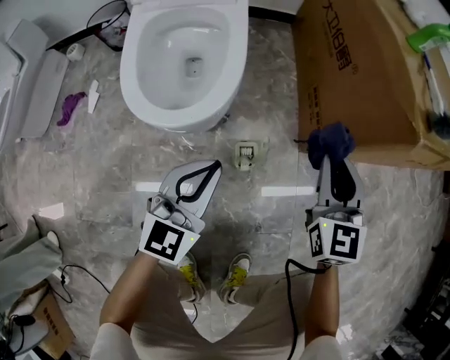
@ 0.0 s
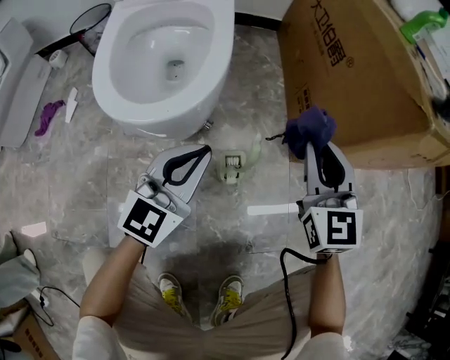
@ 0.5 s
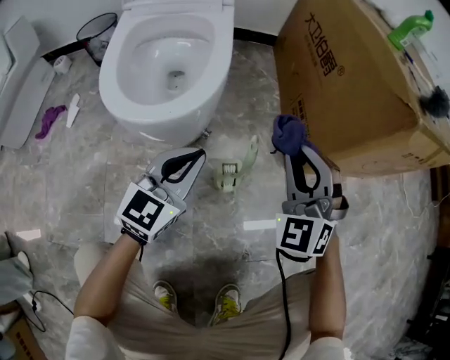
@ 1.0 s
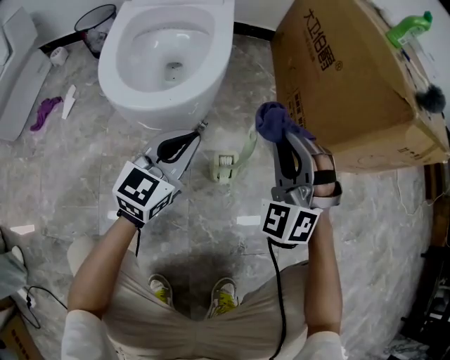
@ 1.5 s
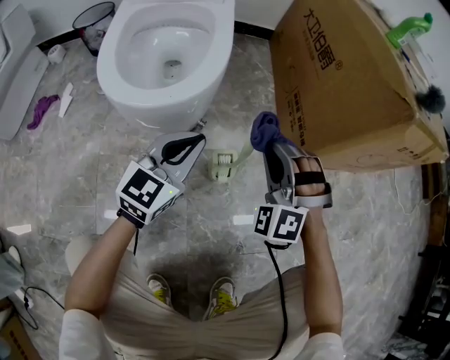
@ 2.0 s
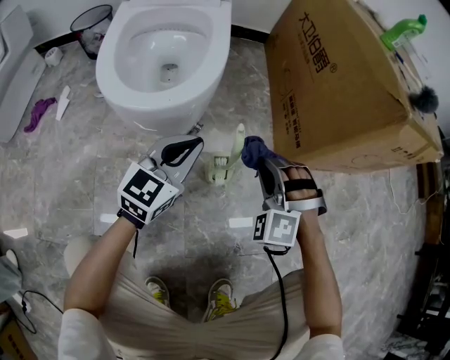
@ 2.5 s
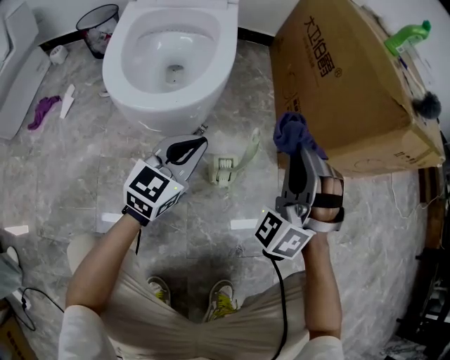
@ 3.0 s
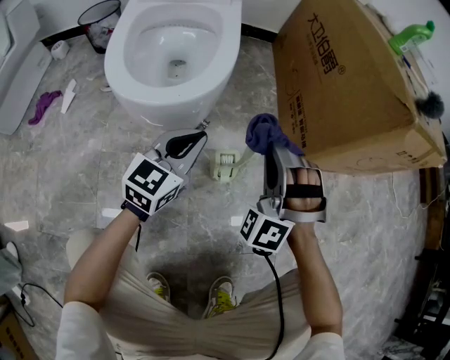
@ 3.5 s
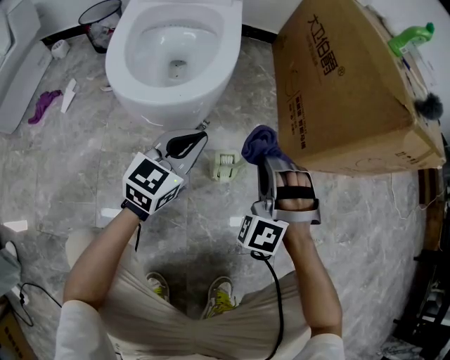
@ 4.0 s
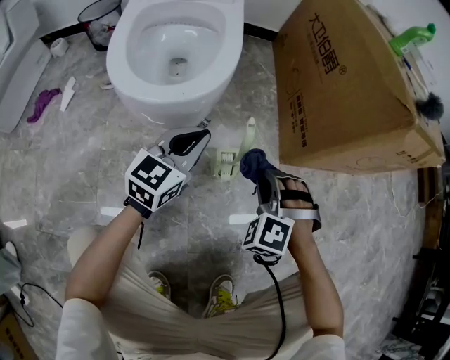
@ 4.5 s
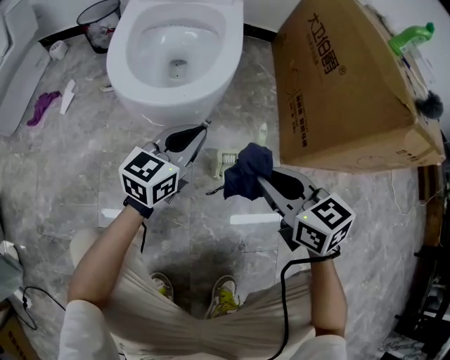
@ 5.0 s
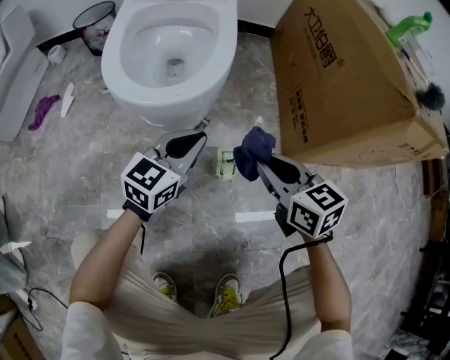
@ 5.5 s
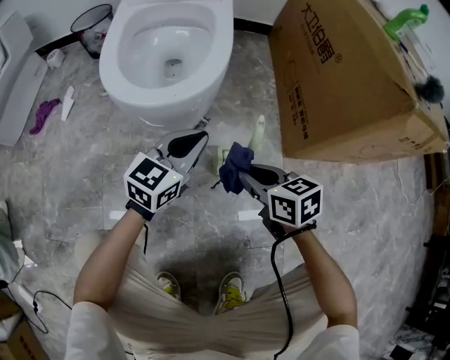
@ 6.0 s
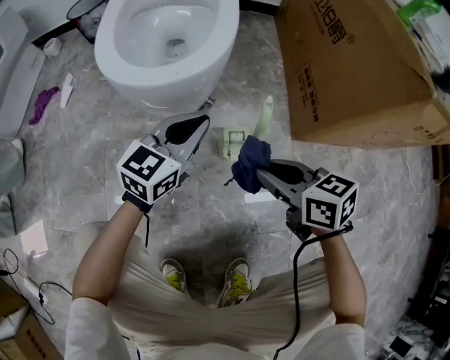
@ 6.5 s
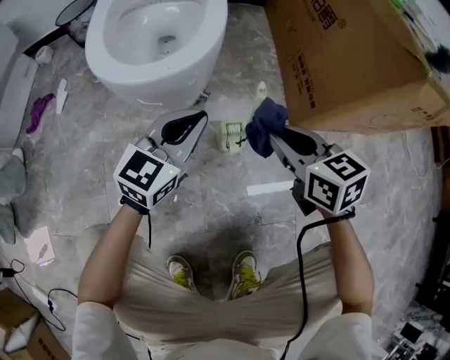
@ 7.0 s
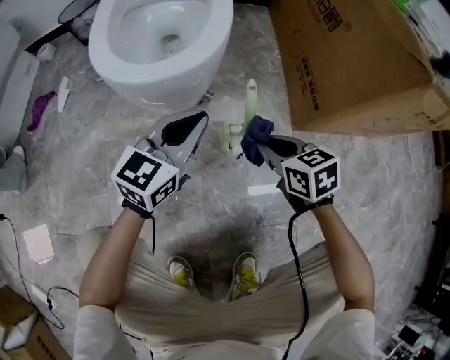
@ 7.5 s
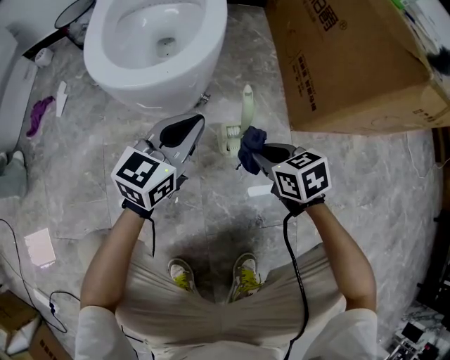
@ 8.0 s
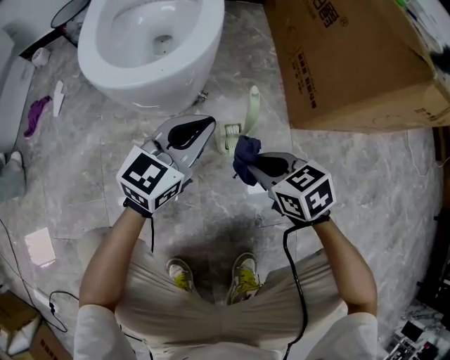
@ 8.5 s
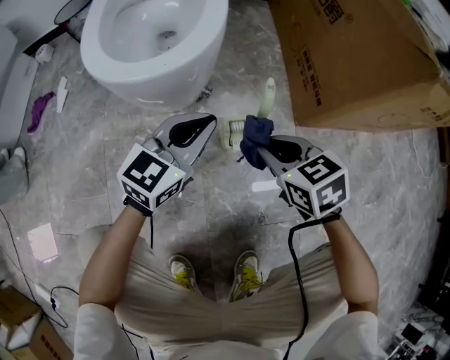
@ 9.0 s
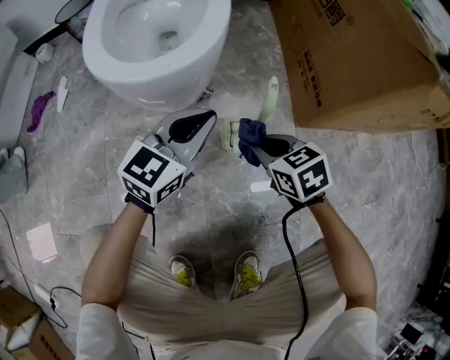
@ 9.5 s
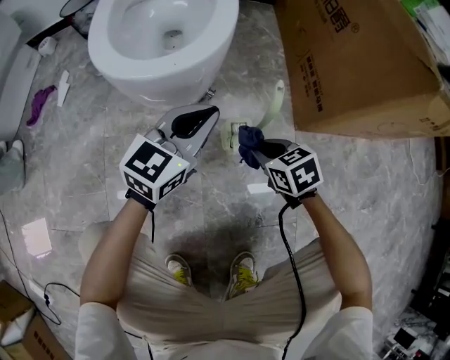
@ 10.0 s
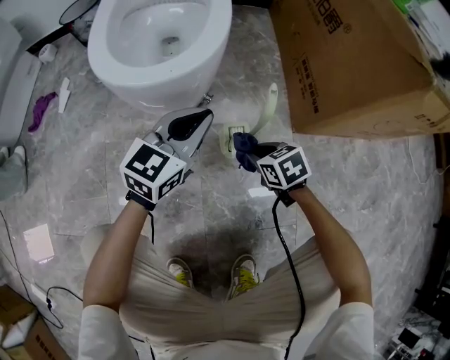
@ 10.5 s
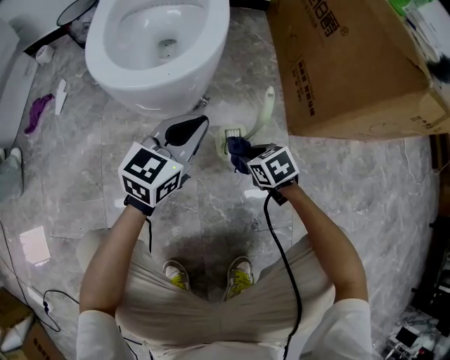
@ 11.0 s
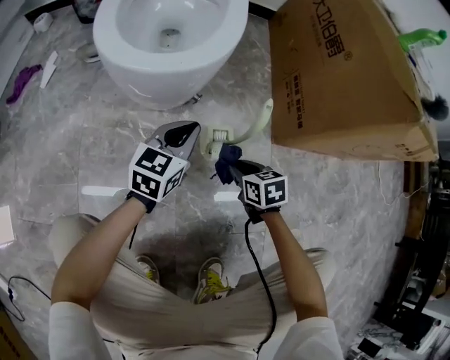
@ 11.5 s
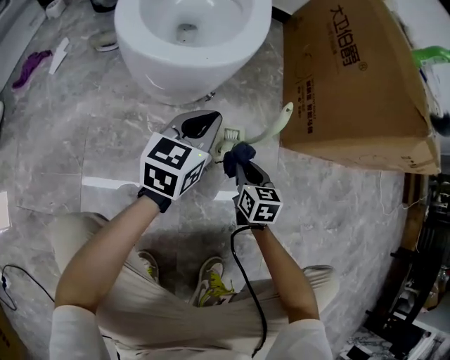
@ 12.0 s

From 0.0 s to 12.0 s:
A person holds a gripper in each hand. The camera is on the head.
From 0.0 s to 2.0 s: The right gripper goes about 15 cm downward and to the left, and rotates around the line of its fingers by roughly 70 degrees, counterclockwise from behind; the left gripper moves downward, about 10 cm.
From 2.0 s to 4.0 s: The right gripper goes up and down, some 10 cm each way, reversing 2 times.
From 4.0 s to 6.0 s: The right gripper moves up and down over some 10 cm, changing direction 2 times, and rolls clockwise, seen from behind, by some 90 degrees.
From 6.0 s to 8.0 s: The right gripper goes approximately 5 cm downward.
From 10.0 s to 12.0 s: The right gripper goes roughly 5 cm downward, and rotates approximately 30 degrees.

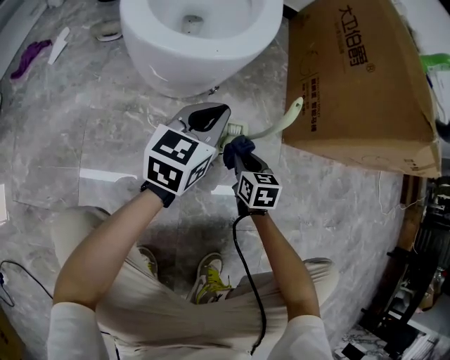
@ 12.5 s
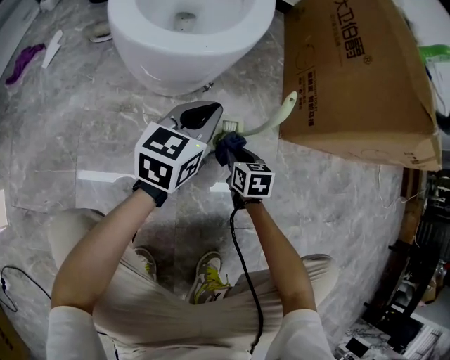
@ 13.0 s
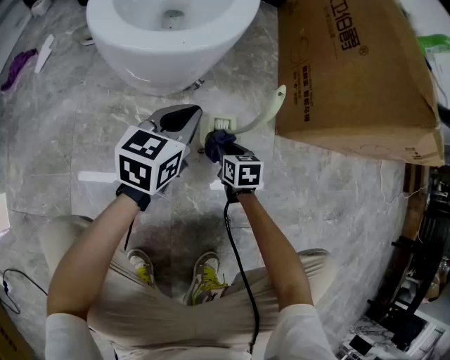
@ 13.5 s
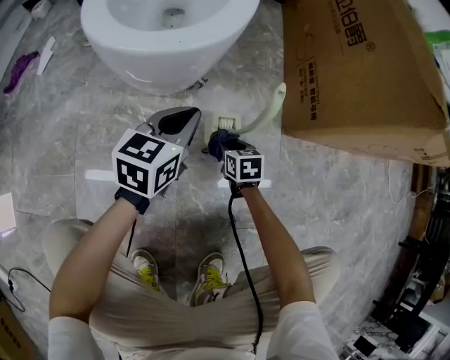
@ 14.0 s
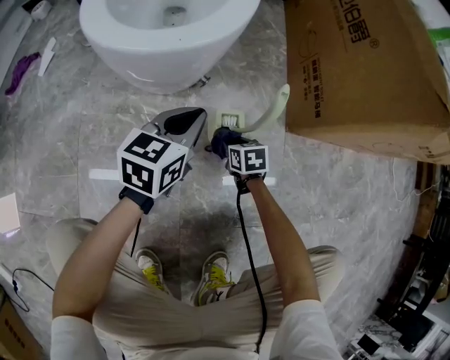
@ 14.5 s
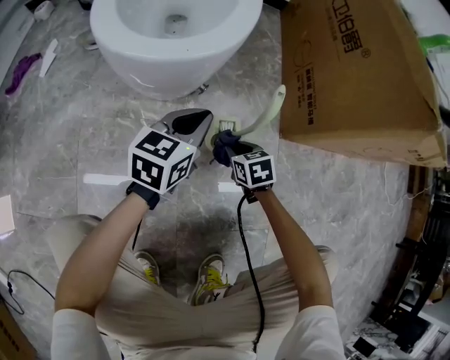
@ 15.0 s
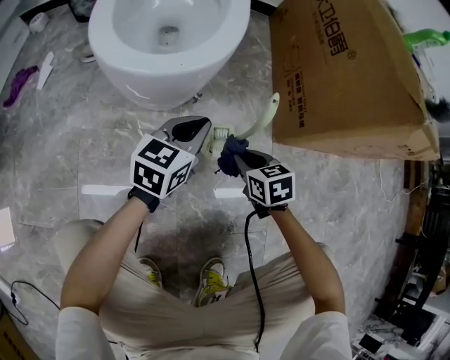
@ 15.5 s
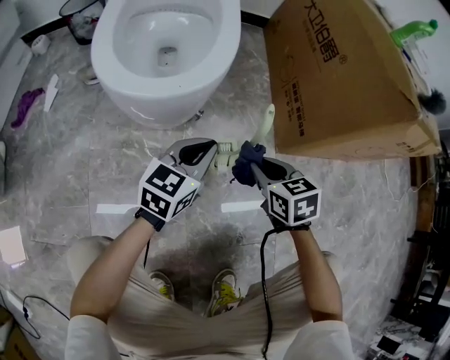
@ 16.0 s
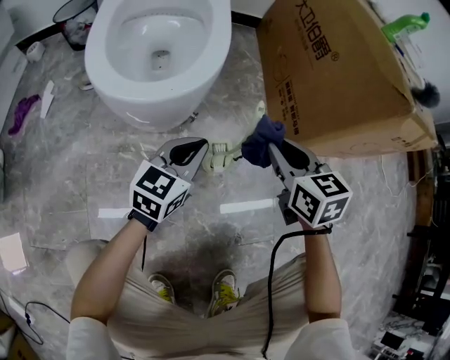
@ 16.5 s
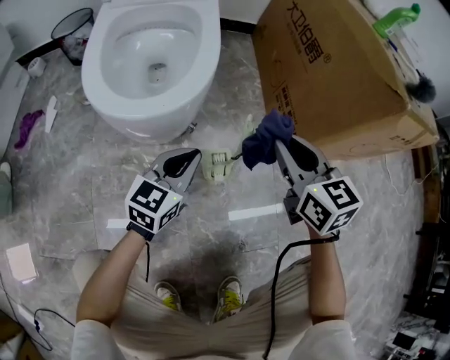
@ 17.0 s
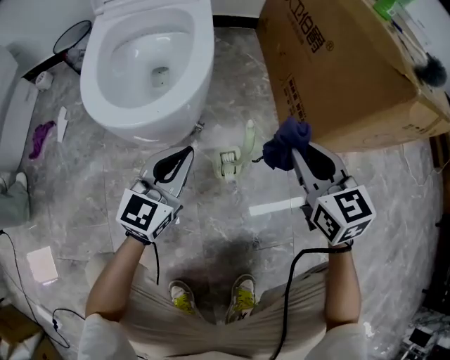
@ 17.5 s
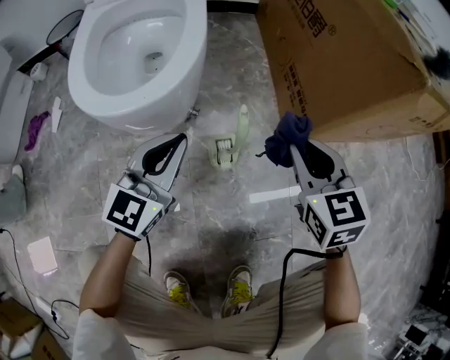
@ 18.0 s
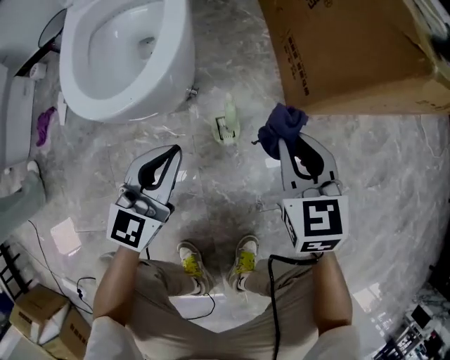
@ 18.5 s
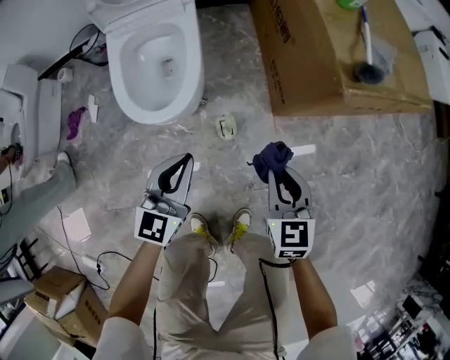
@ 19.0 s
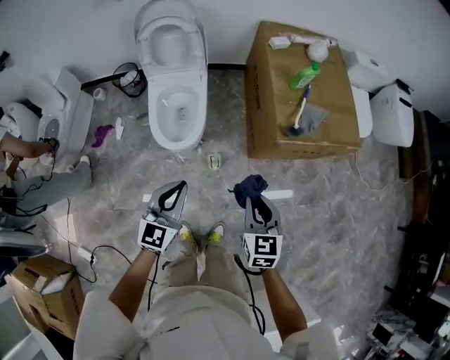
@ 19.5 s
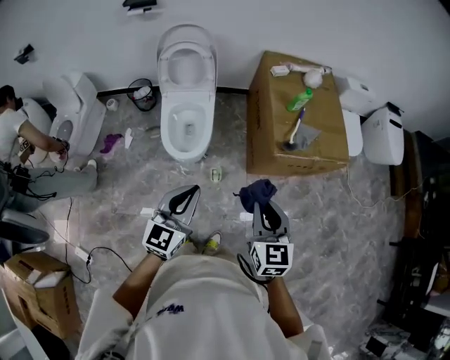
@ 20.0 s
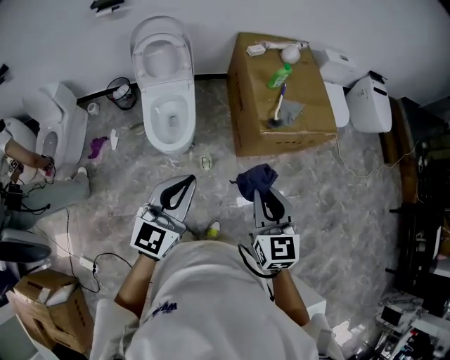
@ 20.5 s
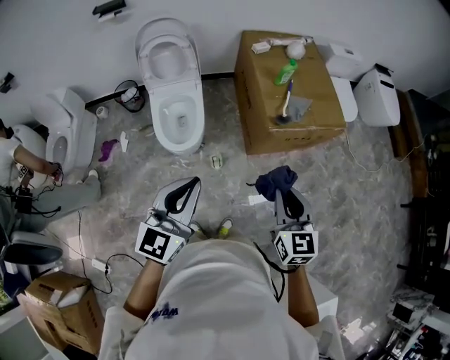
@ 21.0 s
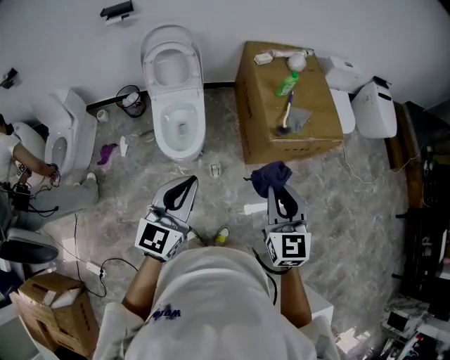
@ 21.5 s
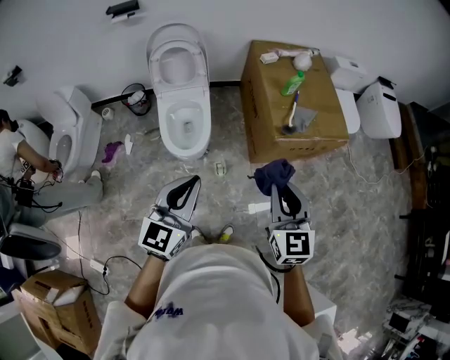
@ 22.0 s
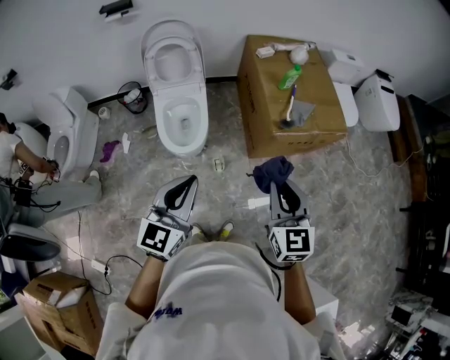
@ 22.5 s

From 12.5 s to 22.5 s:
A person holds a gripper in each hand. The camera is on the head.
From 12.5 s to 14.5 s: The right gripper shifts about 10 cm downward.
From 14.5 s to 16.5 s: The right gripper travels upward by roughly 30 cm, and swivels about 30 degrees, while the left gripper moves some 5 cm.
From 16.5 s to 18.5 s: The right gripper shifts about 5 cm to the right; the left gripper goes approximately 10 cm upward.
From 18.5 s to 20.5 s: The grippers both shift upward by roughly 70 cm.
From 20.5 s to 22.5 s: The grippers stay close to where they were, moving slightly.

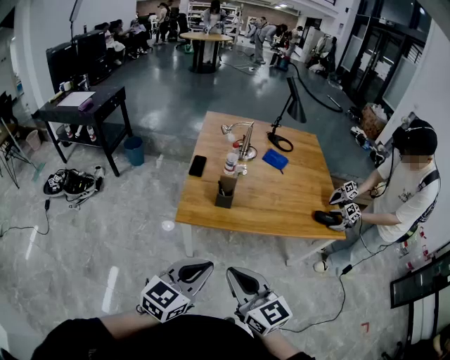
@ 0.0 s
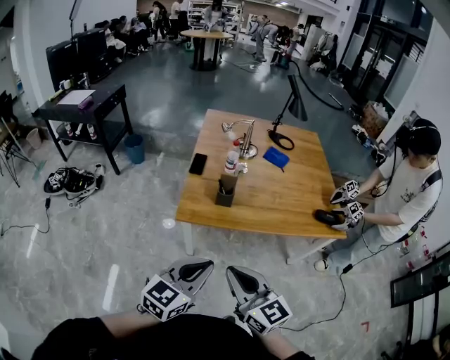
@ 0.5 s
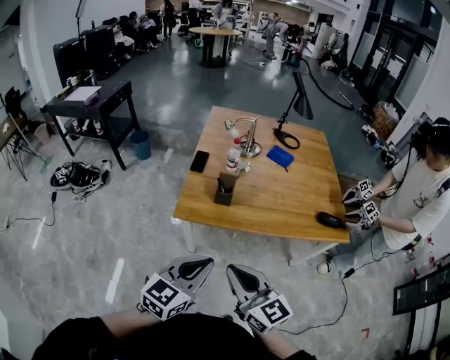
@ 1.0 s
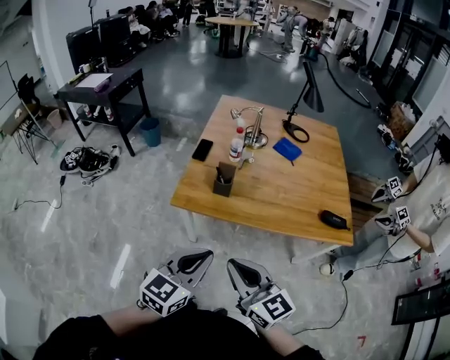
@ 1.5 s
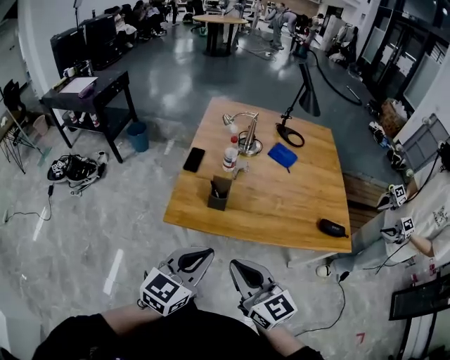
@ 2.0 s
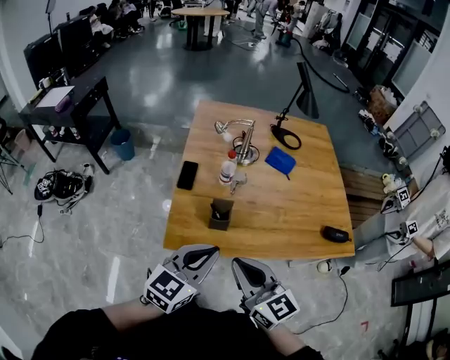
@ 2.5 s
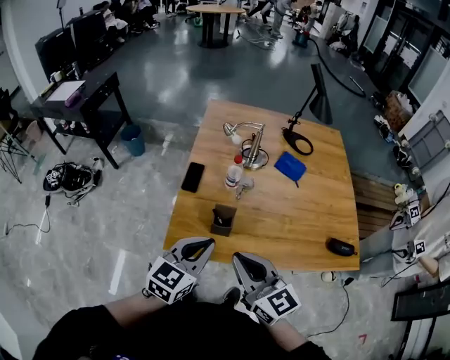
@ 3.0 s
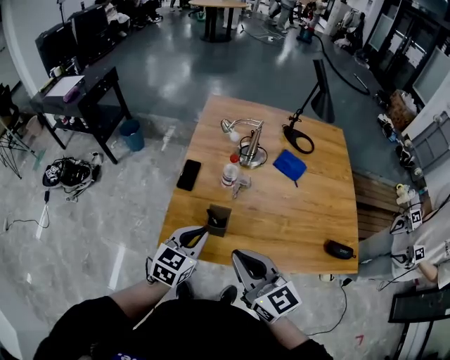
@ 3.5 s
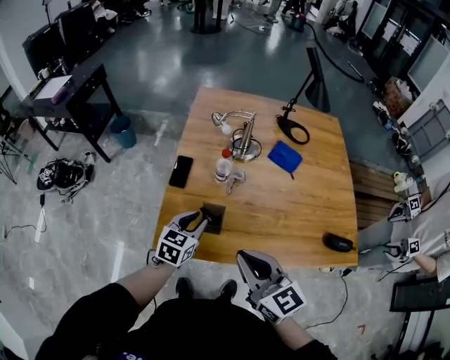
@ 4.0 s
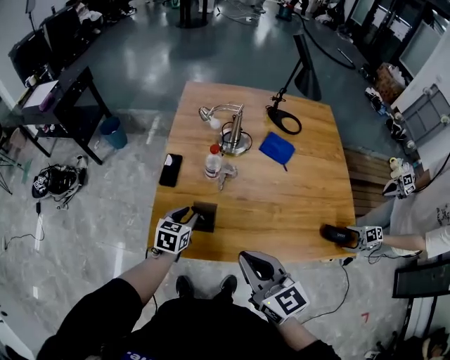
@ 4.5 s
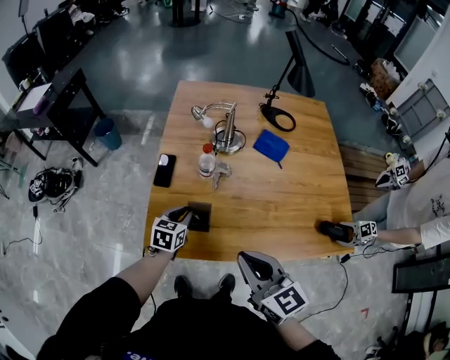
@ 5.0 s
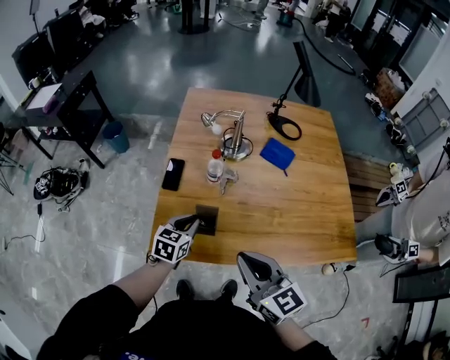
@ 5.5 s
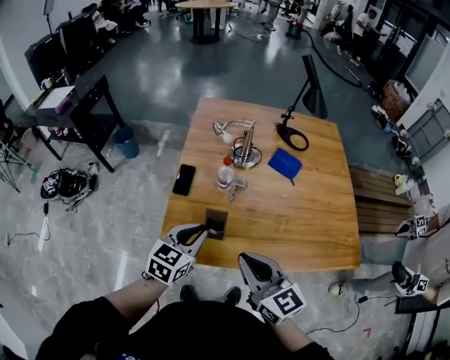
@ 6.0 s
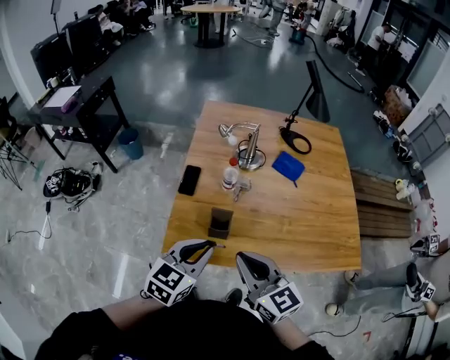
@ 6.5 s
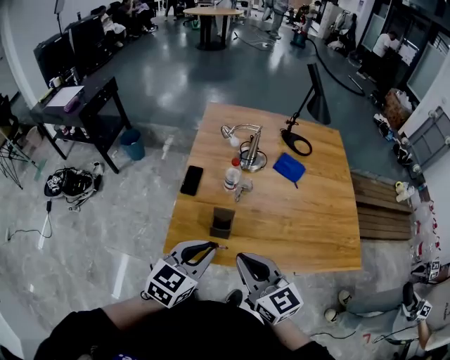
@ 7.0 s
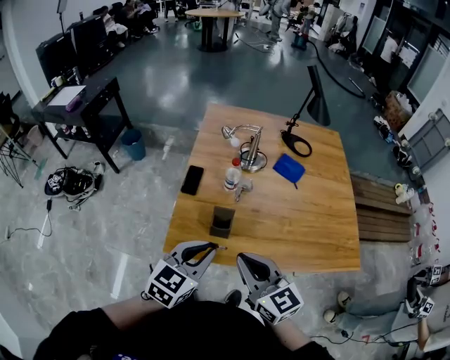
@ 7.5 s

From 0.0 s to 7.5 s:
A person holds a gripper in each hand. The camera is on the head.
From 0.0 s to 2.0 s: Both grippers move forward and to the right, approximately 15 cm.
From 2.0 s to 4.0 s: The right gripper moves forward, roughly 20 cm. Meanwhile the left gripper goes some 35 cm forward and downward, and opens its fingers.
From 5.5 s to 7.5 s: The left gripper shifts approximately 20 cm upward and backward; the right gripper shifts by approximately 5 cm.
